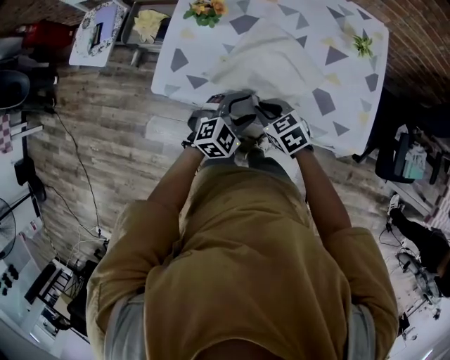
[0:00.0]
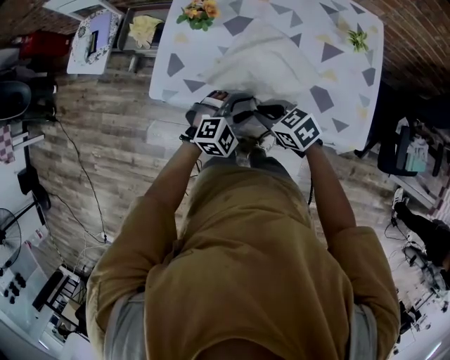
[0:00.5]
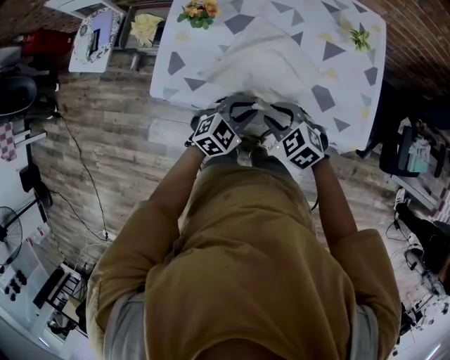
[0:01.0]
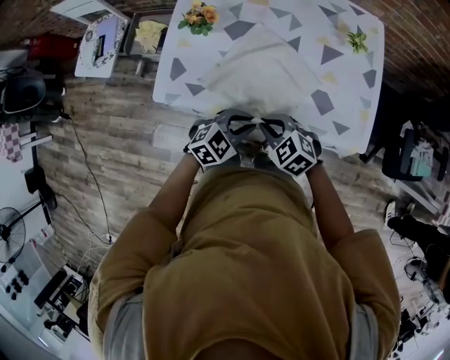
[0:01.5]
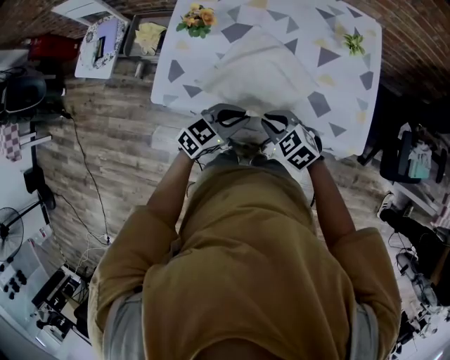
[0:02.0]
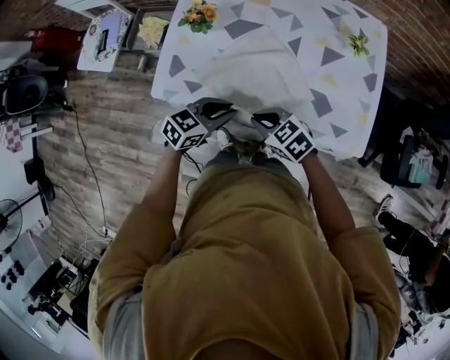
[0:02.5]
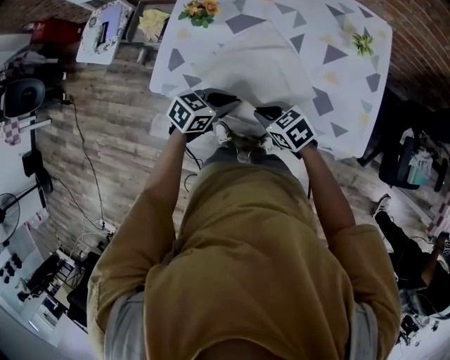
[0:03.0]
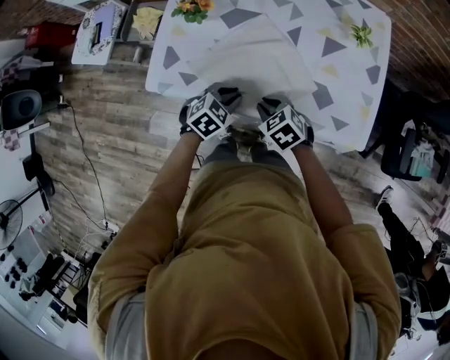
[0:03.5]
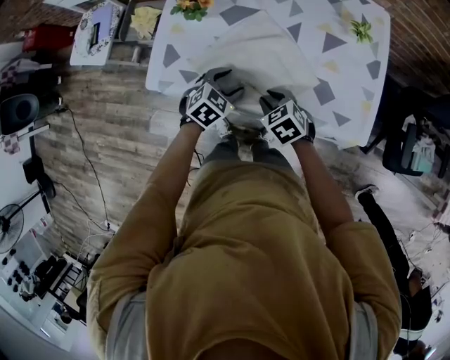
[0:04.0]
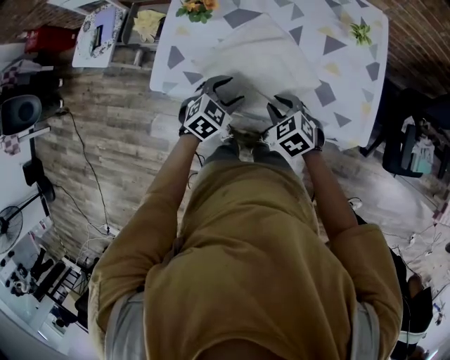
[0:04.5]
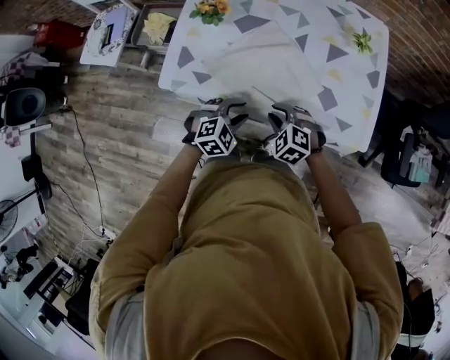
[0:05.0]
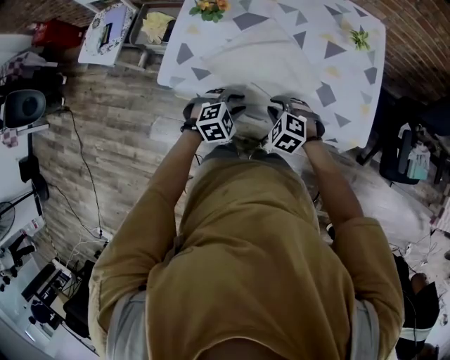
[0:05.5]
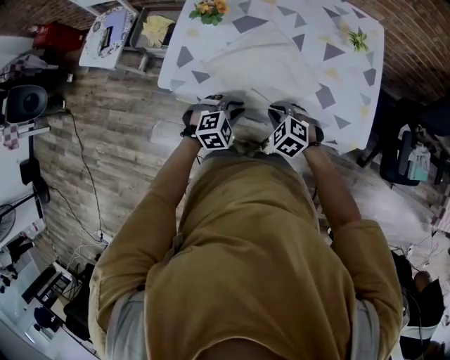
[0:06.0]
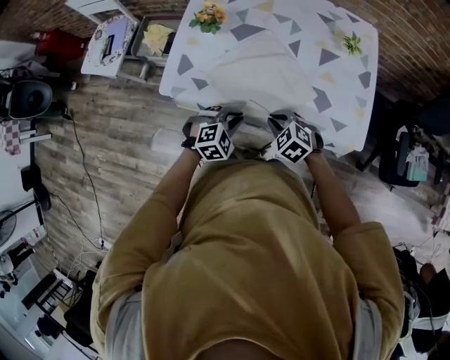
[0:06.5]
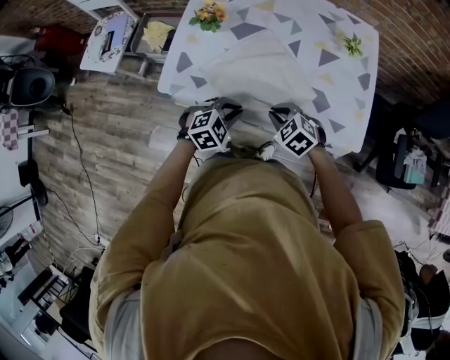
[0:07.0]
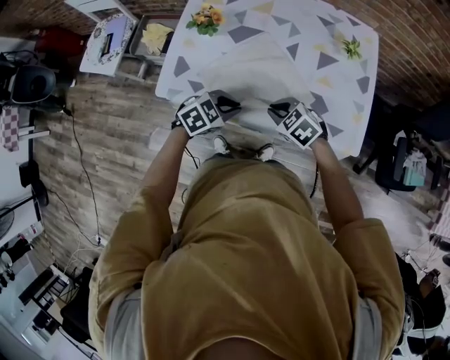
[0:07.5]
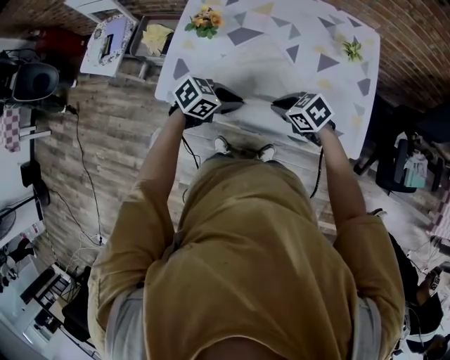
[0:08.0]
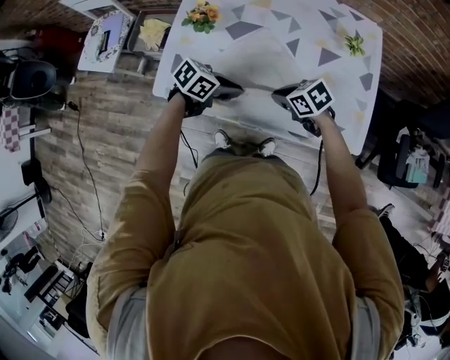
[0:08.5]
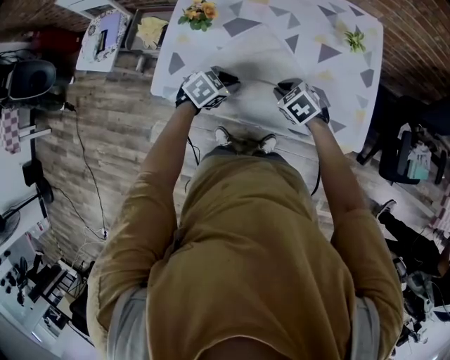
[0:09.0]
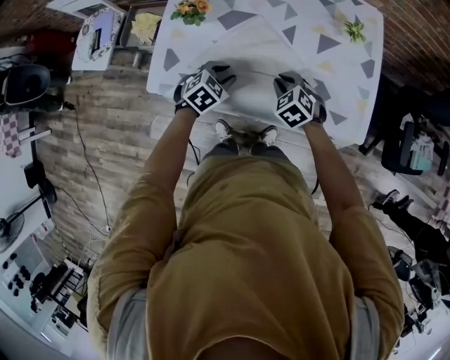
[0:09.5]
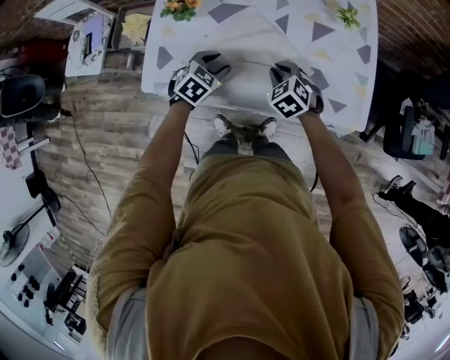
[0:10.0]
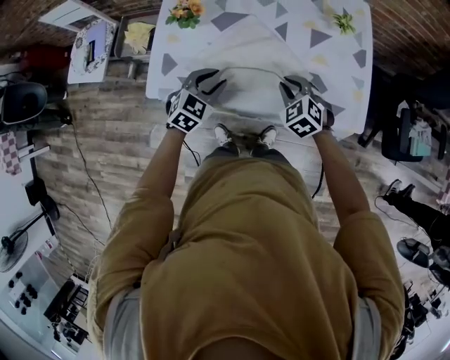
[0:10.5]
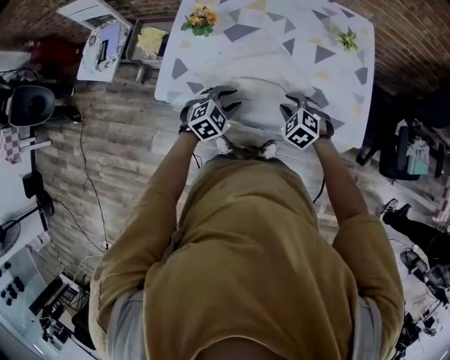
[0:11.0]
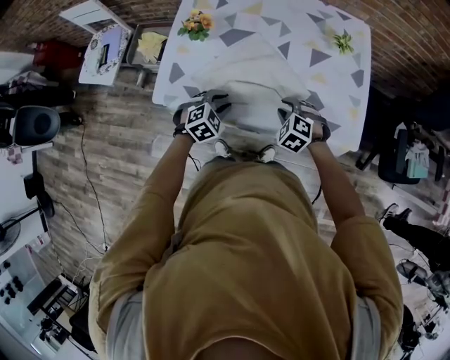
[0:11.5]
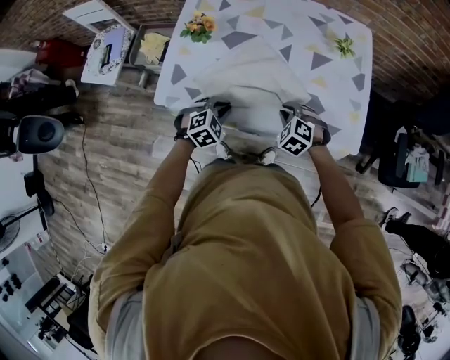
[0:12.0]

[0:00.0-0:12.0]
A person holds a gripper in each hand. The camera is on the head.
0.0 to 2.0 s: The right gripper moves approximately 5 cm, while the left gripper swivels approximately 30 degrees, and closes.
2.0 to 4.0 s: The grippers both shift downward by about 5 cm. The left gripper turns by some 30 degrees.
4.0 to 6.0 s: The right gripper changes its angle by approximately 30 degrees. Meanwhile the left gripper goes some 10 cm backward, and swivels about 30 degrees.
6.0 to 8.0 s: The left gripper moves upward, some 5 cm, and turns by roughly 50 degrees. The right gripper shifts by about 10 cm, and turns by roughly 40 degrees.
8.0 to 10.0 s: The left gripper moves some 10 cm, and rotates roughly 30 degrees; the right gripper ends up roughly 5 cm from where it was, and swivels roughly 30 degrees.
10.0 to 12.0 s: The left gripper is displaced backward by approximately 10 cm, while the right gripper ends up roughly 5 cm from where it was, and rotates some 20 degrees.

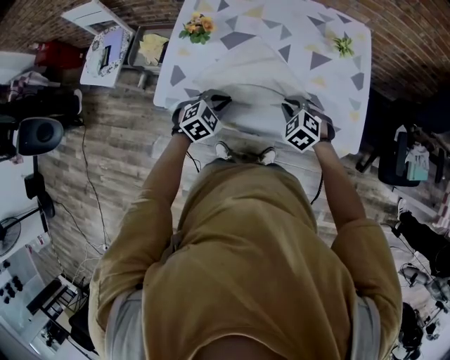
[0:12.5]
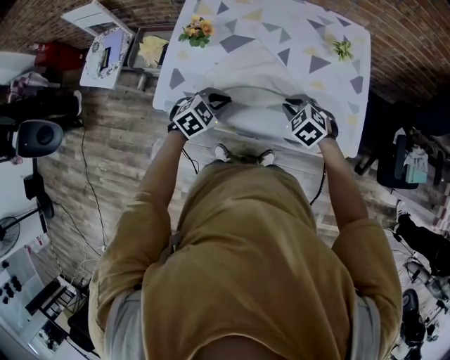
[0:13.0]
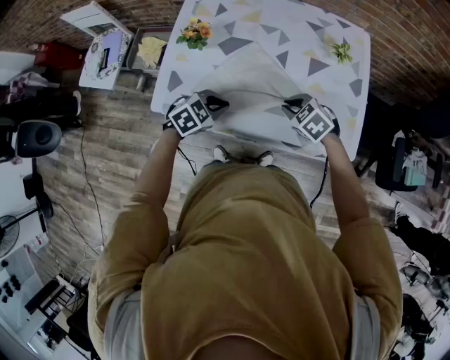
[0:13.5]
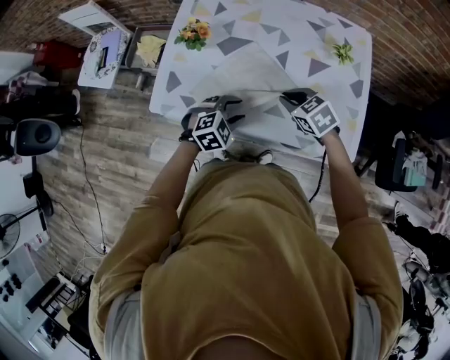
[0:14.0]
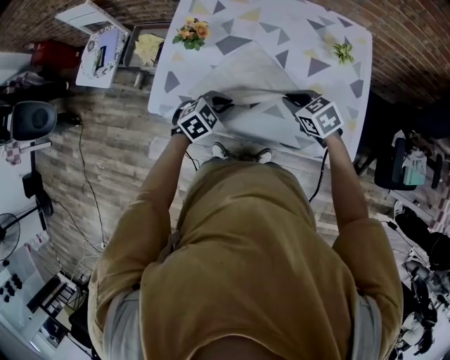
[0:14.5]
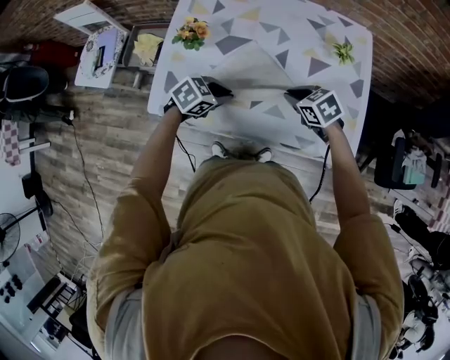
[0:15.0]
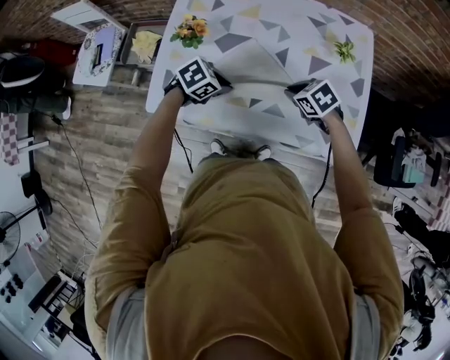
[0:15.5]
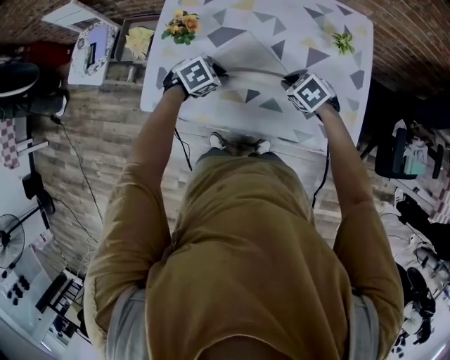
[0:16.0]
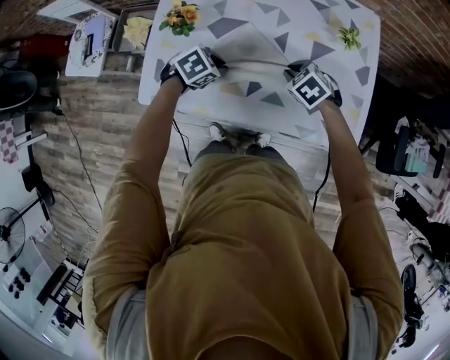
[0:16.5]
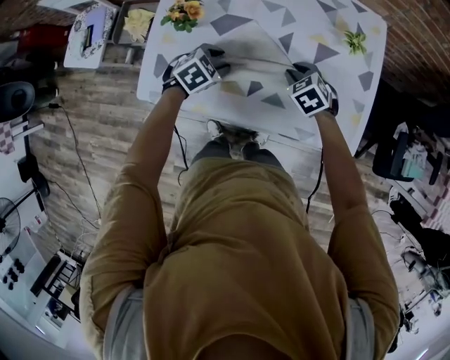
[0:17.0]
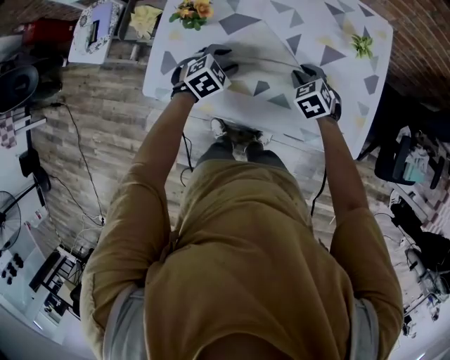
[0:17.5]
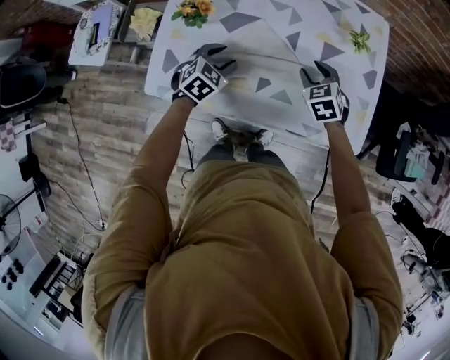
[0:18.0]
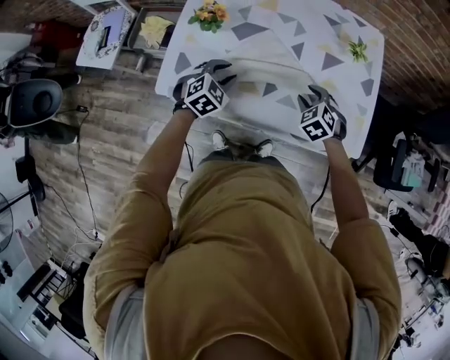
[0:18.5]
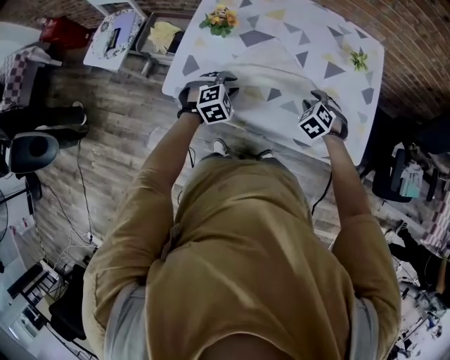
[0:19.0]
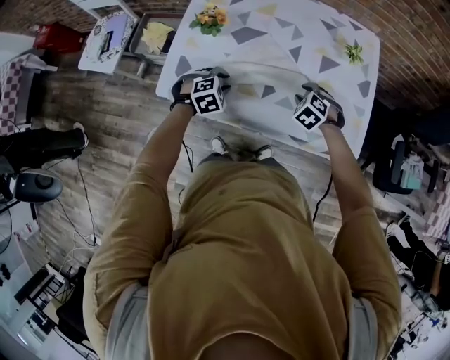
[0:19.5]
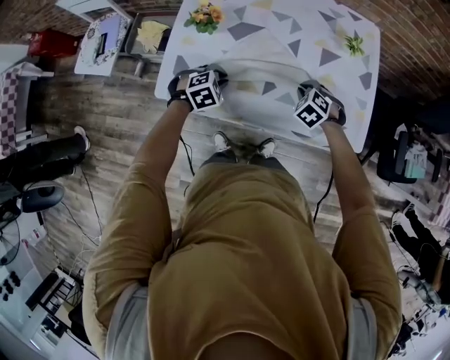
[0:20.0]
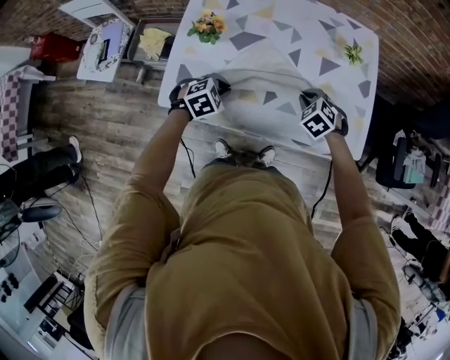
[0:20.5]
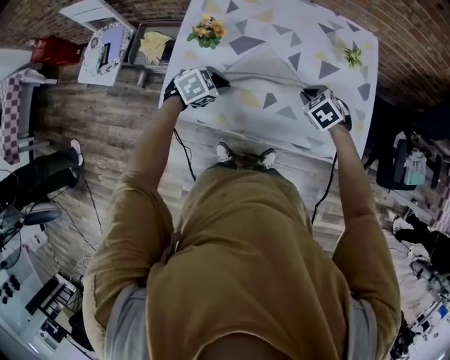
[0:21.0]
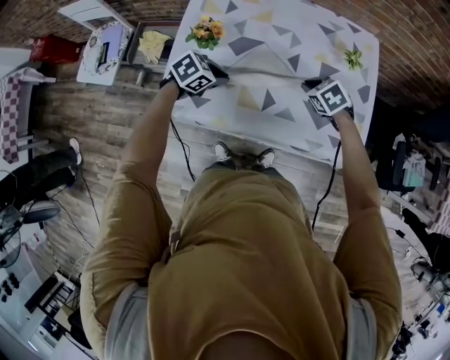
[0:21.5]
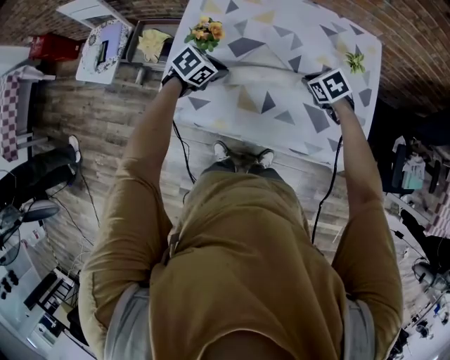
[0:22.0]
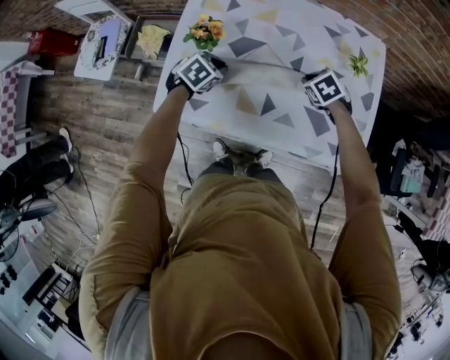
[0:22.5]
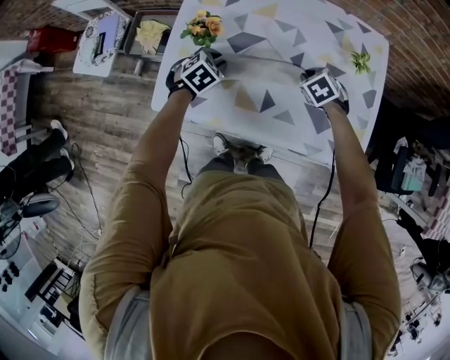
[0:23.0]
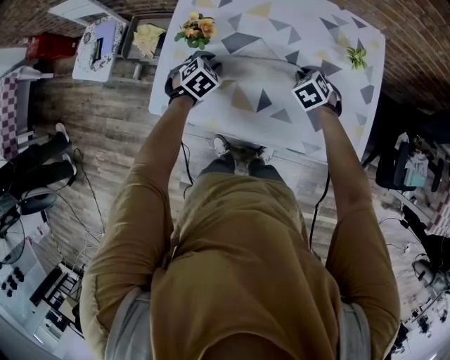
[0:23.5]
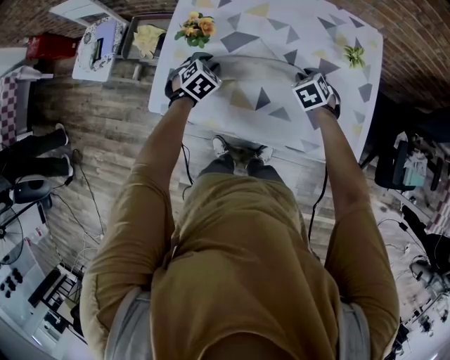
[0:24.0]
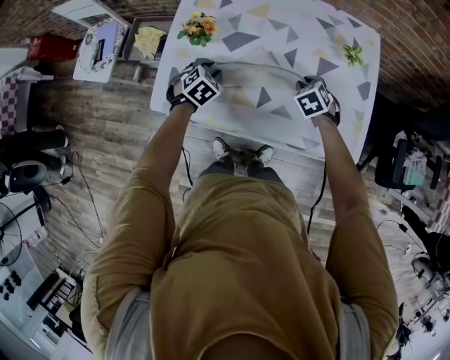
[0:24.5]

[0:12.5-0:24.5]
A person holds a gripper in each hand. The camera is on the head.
12.5 to 14.5 s: The right gripper changes place by approximately 5 cm, and turns by some 30 degrees.
14.5 to 16.5 s: The left gripper changes place by about 10 cm, while the right gripper is displaced downward by roughly 5 cm.
16.5 to 18.5 s: The left gripper moves roughly 5 cm, and turns by roughly 30 degrees; the right gripper is displaced backward by about 5 cm.
20.5 to 22.5 s: The right gripper travels forward by approximately 10 cm; the left gripper is displaced forward and to the left by about 10 cm, and swivels some 20 degrees.
22.5 to 24.5 s: The right gripper ends up about 5 cm from where it was.

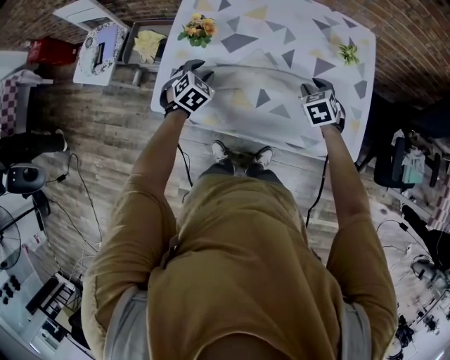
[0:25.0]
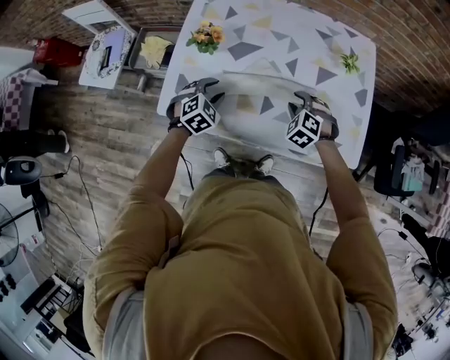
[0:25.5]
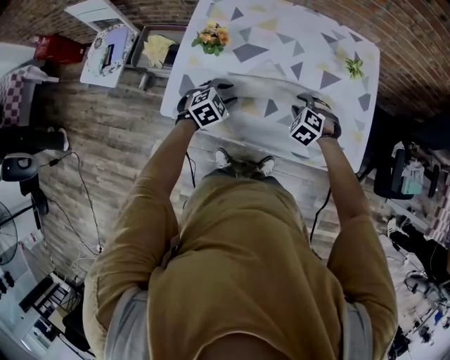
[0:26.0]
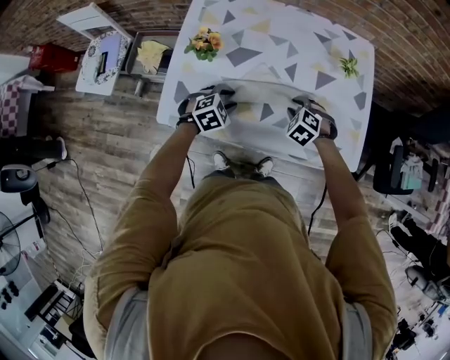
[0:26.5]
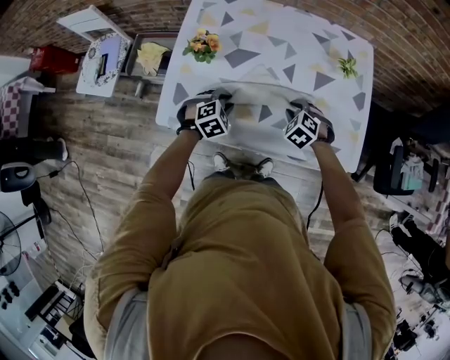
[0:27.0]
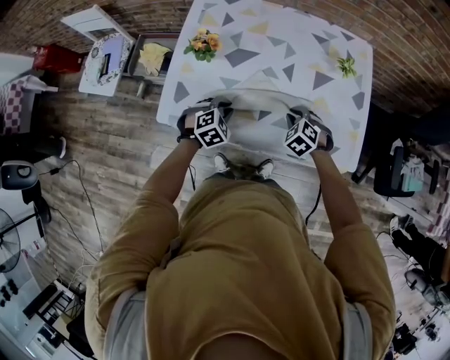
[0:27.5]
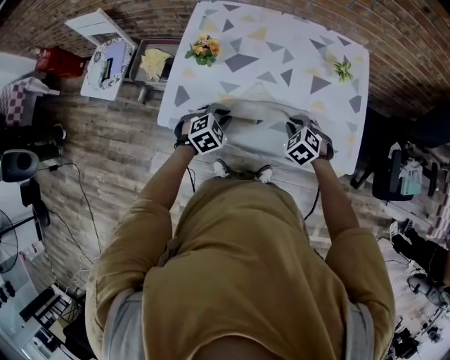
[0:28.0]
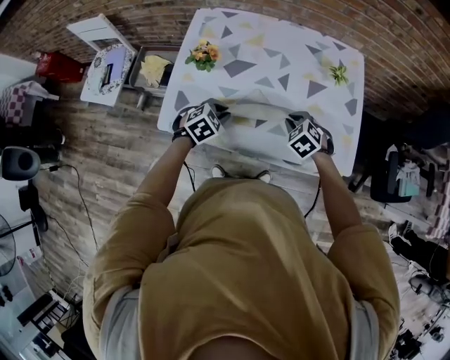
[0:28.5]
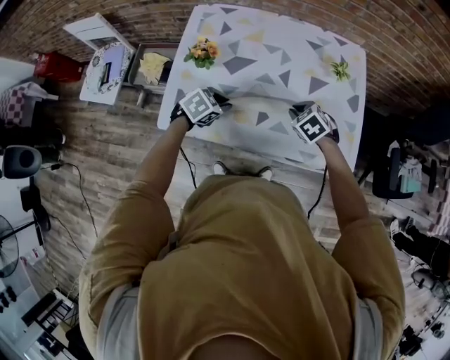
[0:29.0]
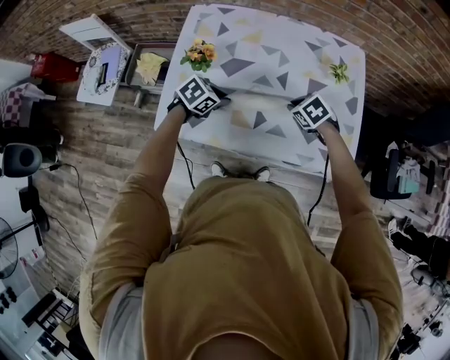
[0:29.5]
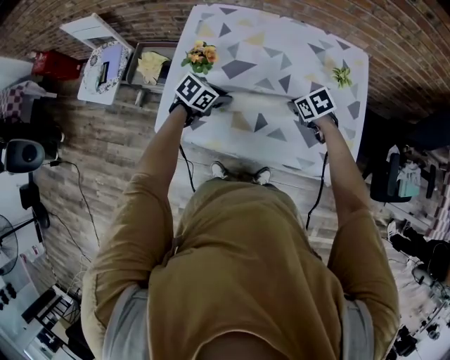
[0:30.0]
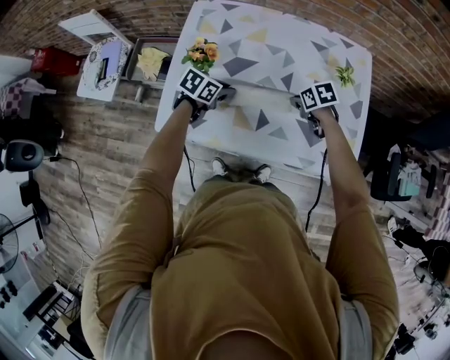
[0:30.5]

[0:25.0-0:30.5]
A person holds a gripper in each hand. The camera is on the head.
25.0 to 27.0 s: The right gripper travels backward by approximately 5 cm, and turns by about 30 degrees, while the left gripper travels to the right by some 10 cm, and changes its angle by roughly 20 degrees.
27.0 to 28.5 s: The left gripper is displaced upward by about 5 cm; the right gripper moves roughly 5 cm.
28.5 to 30.5 s: The left gripper ends up some 10 cm from where it was, and swivels approximately 40 degrees, while the right gripper ends up some 10 cm from where it was, and changes its angle by approximately 40 degrees.
